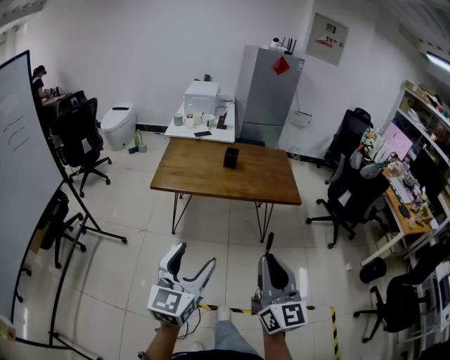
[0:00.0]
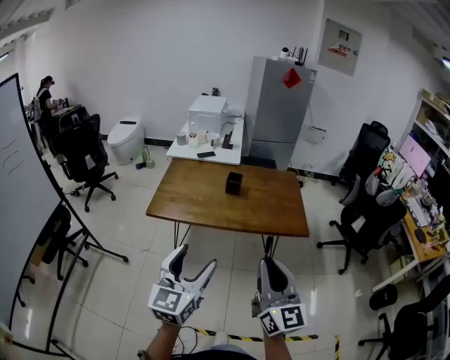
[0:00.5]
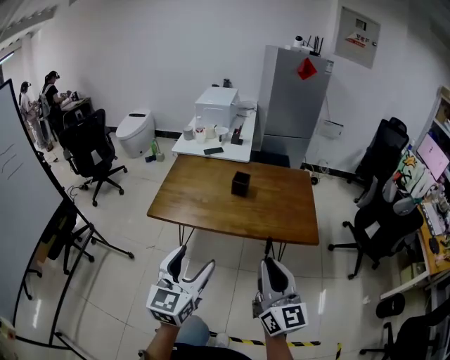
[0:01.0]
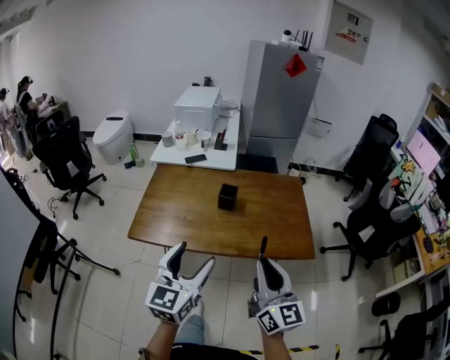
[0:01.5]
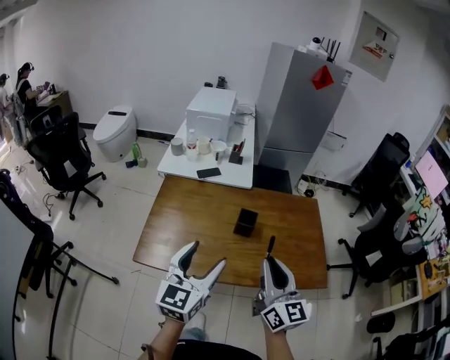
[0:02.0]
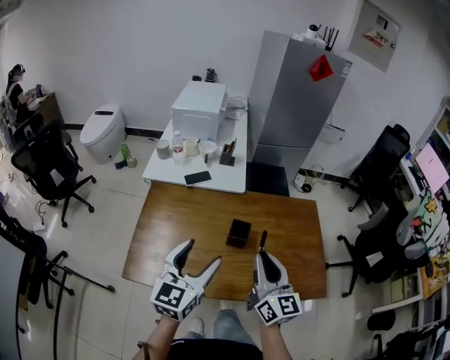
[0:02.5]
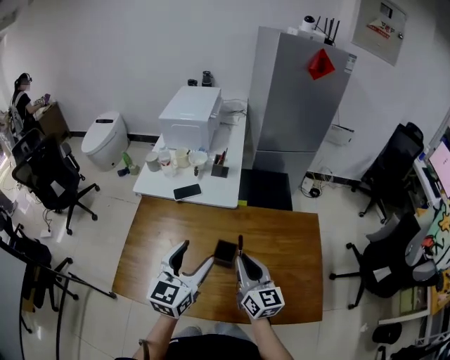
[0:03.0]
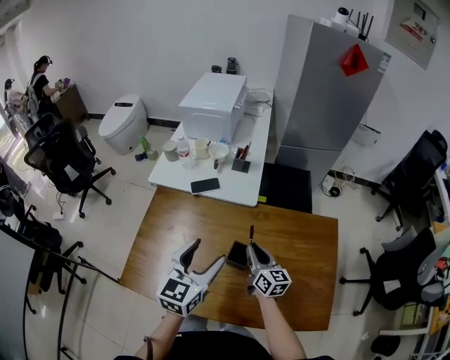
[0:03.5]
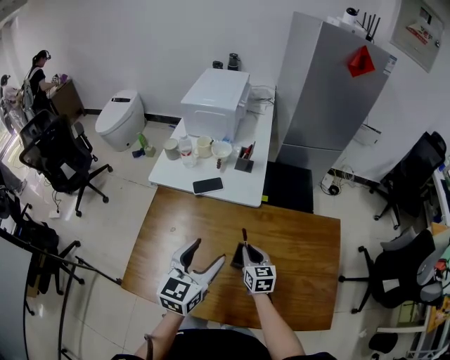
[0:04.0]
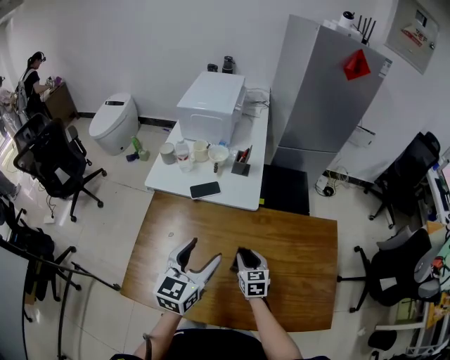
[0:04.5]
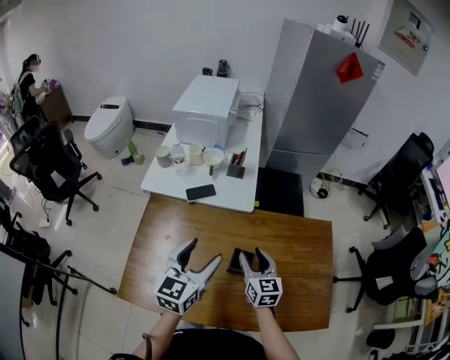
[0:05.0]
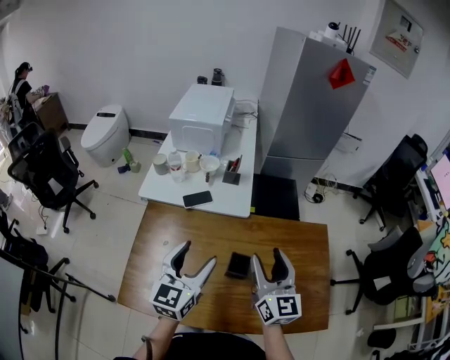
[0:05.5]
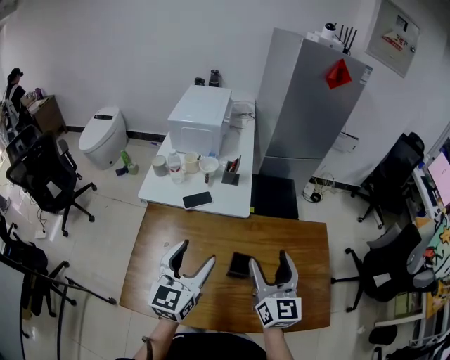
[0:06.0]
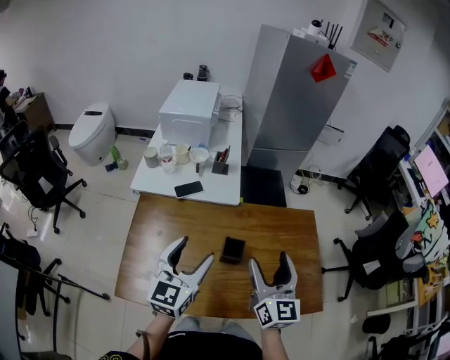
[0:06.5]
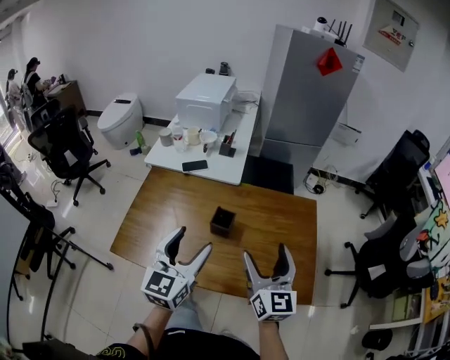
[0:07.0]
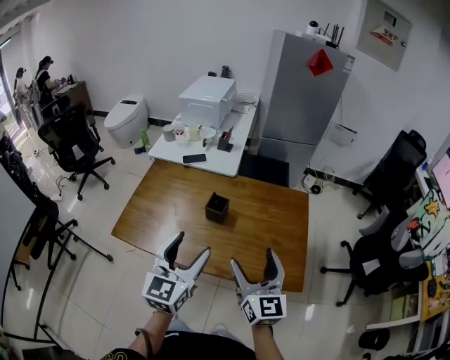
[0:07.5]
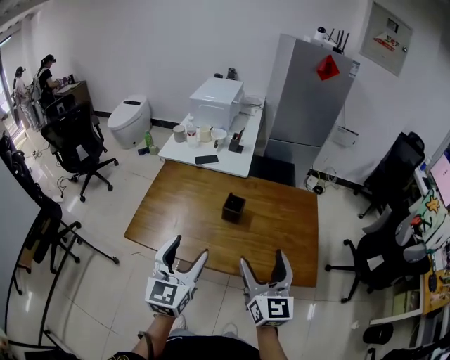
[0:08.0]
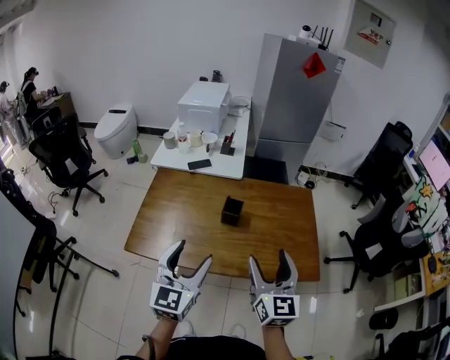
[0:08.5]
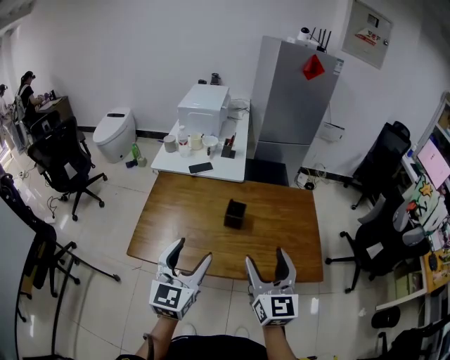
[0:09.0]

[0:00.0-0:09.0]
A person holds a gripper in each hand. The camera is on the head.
0:00.0 to 0:02.0: Both grippers are carried forward, roughly 60 cm.
0:02.0 to 0:04.5: The left gripper is displaced forward by roughly 30 cm. Meanwhile the right gripper travels forward and downward by some 50 cm, and tips its fingers downward by about 40 degrees.
0:04.5 to 0:07.0: The right gripper moves upward, backward and to the right, some 35 cm, tilts its fingers some 40 degrees upward, and opens up; the left gripper travels backward and to the right by about 20 cm.
0:07.0 to 0:09.0: The grippers both shift backward and to the left by approximately 15 cm.

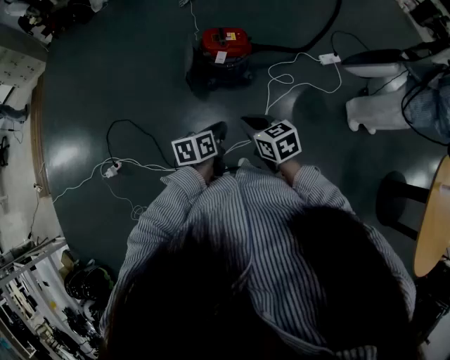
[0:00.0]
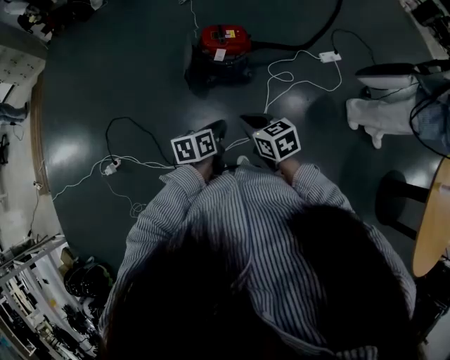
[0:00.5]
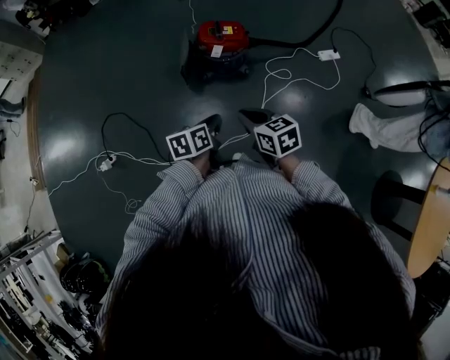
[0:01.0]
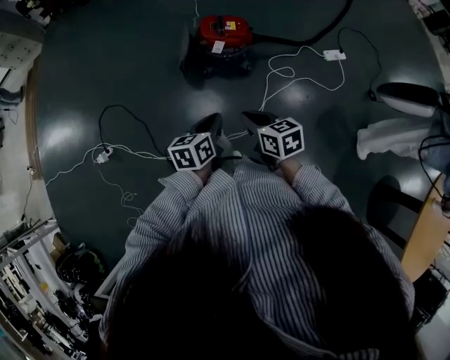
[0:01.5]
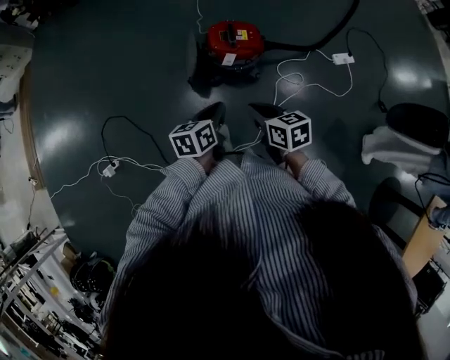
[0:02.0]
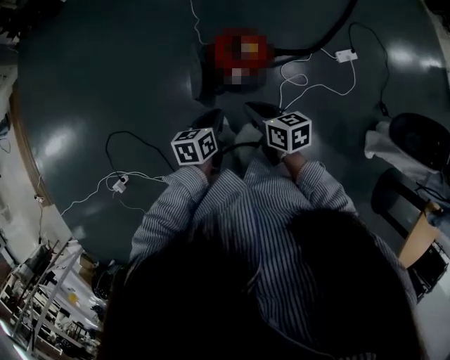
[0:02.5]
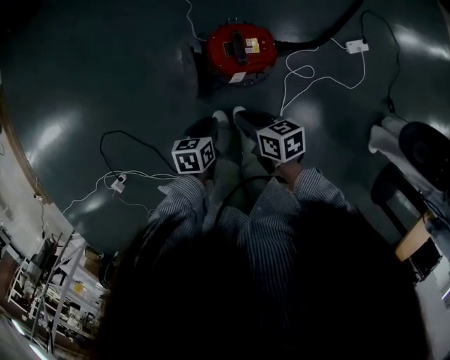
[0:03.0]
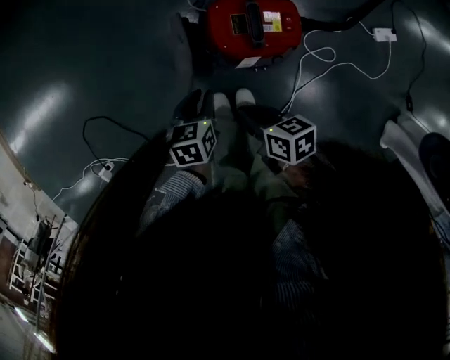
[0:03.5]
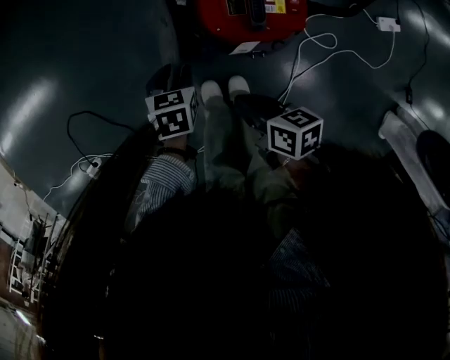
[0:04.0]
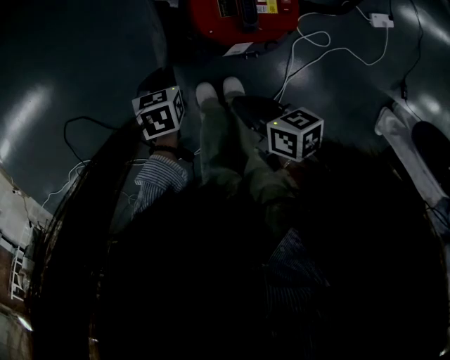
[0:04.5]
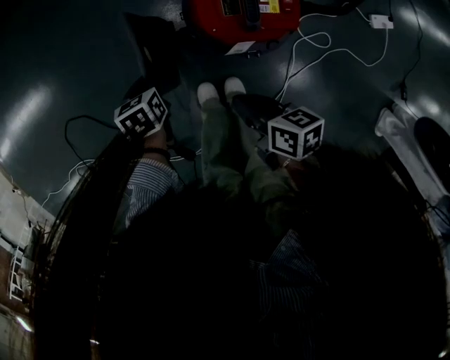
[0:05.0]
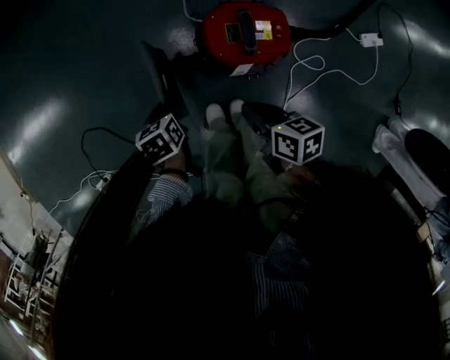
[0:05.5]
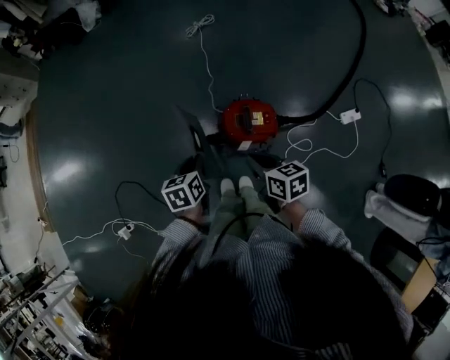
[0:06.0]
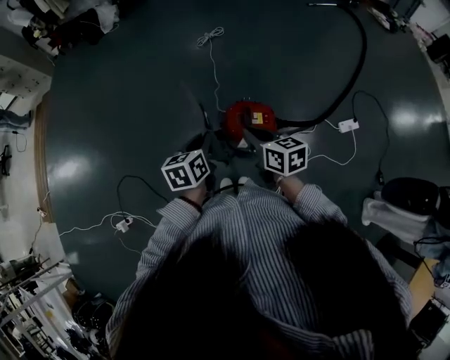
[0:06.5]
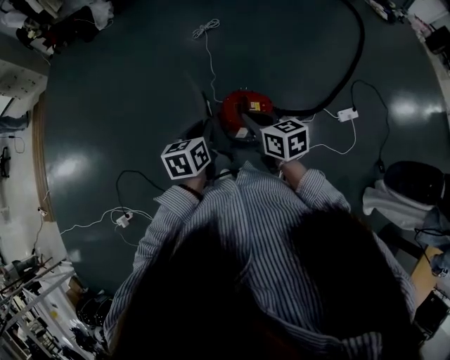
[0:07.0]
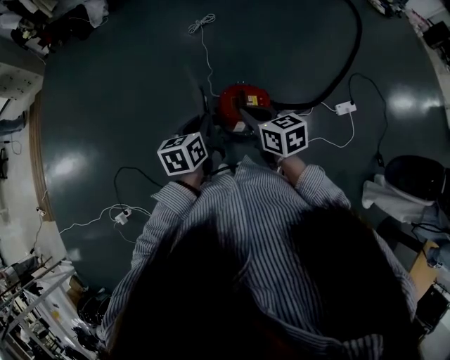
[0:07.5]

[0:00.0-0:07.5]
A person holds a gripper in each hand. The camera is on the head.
0:00.0 to 0:02.0: Both grippers move forward, approximately 20 cm.
0:02.0 to 0:04.0: Both grippers travel together downward and forward, about 40 cm. The right gripper changes its angle by approximately 30 degrees. Meanwhile the left gripper angles its fingers downward, by approximately 30 degrees, and opens its fingers.
0:04.0 to 0:05.5: The right gripper travels upward by roughly 10 cm. The left gripper travels upward and to the left by about 10 cm, rotates approximately 20 degrees, and closes.
0:05.5 to 0:07.5: Both grippers travel together upward, approximately 35 cm. The right gripper turns by approximately 30 degrees, while the left gripper points its fingers approximately 30 degrees further upward.

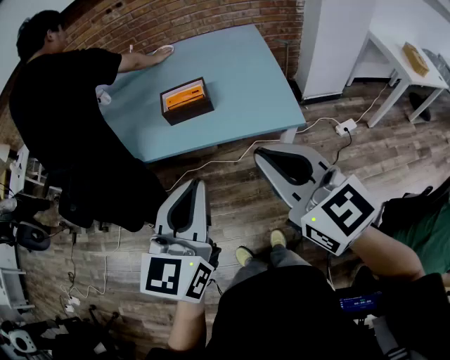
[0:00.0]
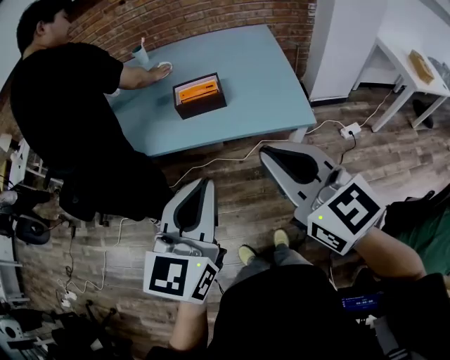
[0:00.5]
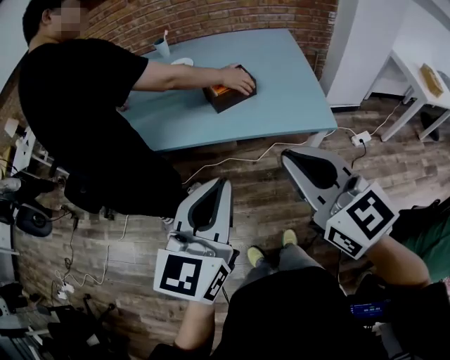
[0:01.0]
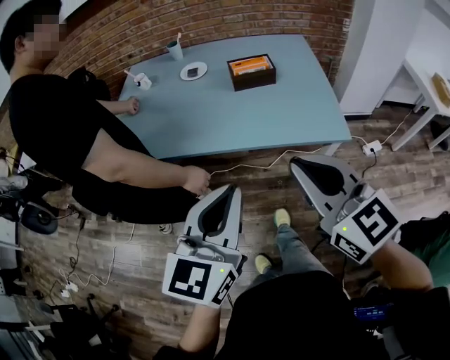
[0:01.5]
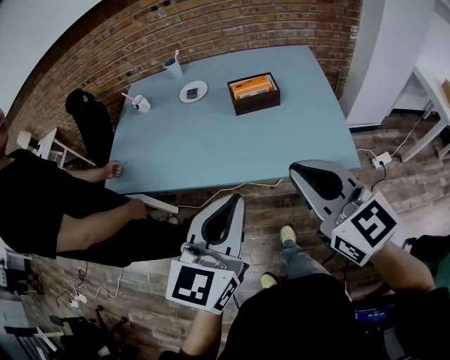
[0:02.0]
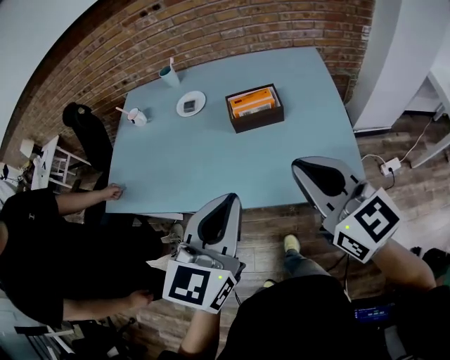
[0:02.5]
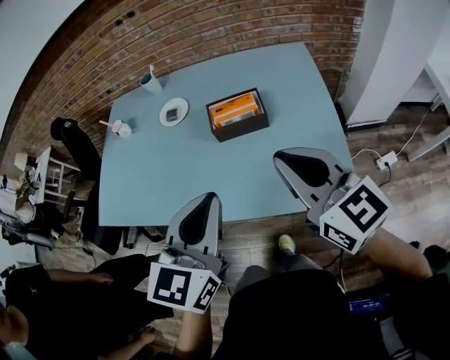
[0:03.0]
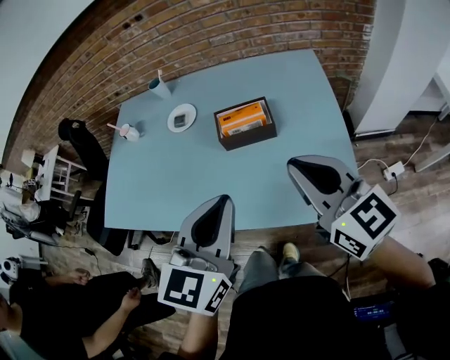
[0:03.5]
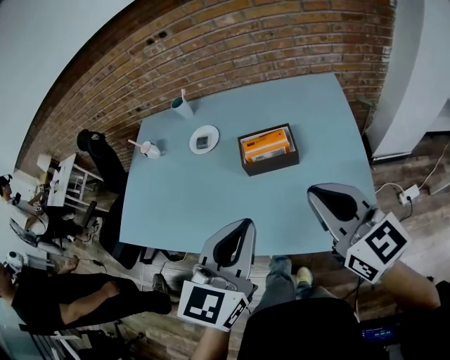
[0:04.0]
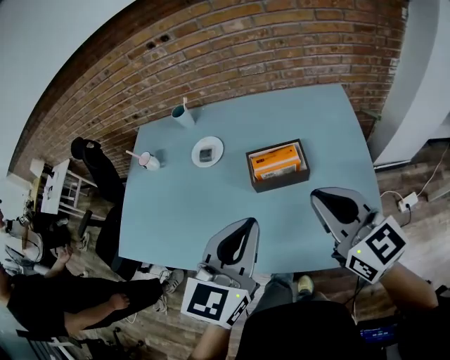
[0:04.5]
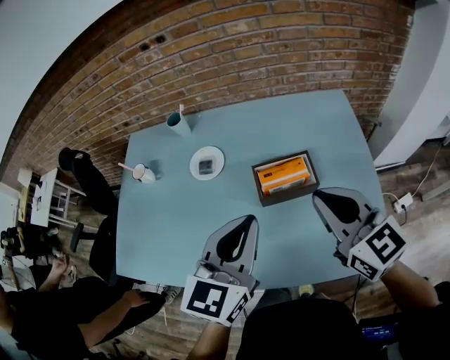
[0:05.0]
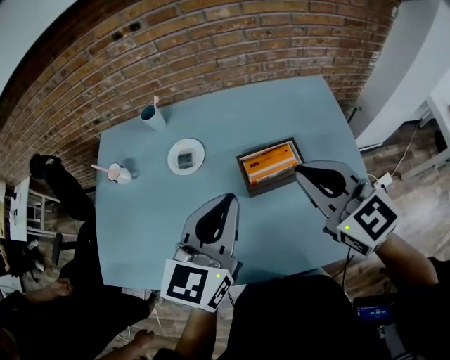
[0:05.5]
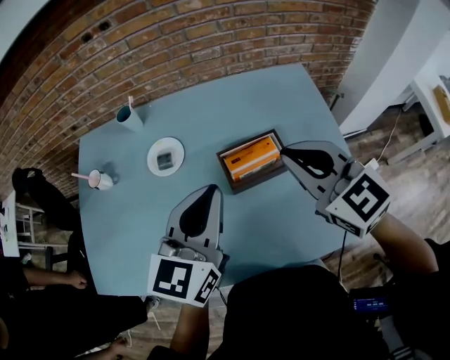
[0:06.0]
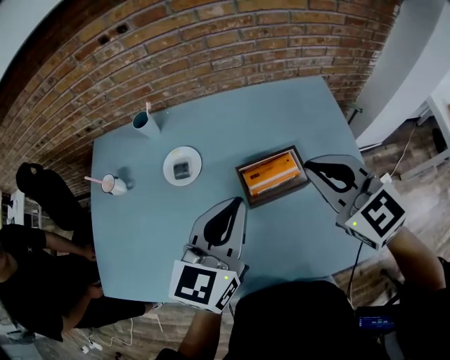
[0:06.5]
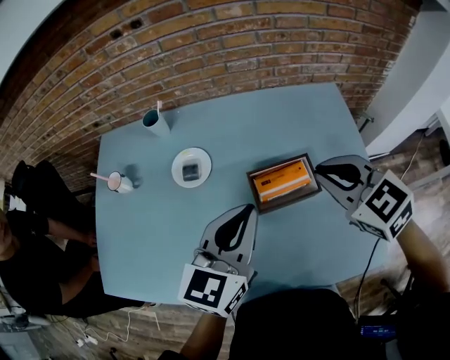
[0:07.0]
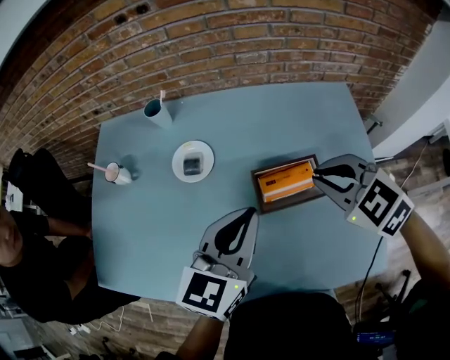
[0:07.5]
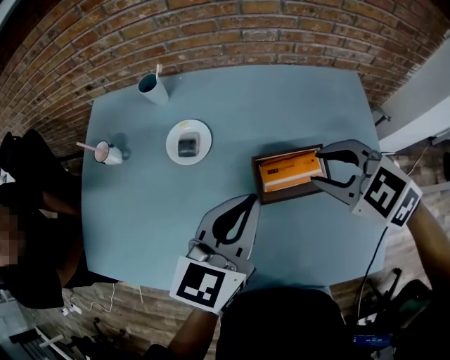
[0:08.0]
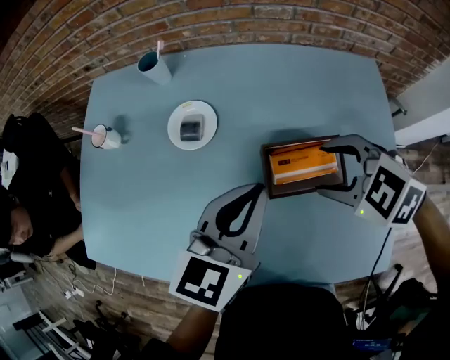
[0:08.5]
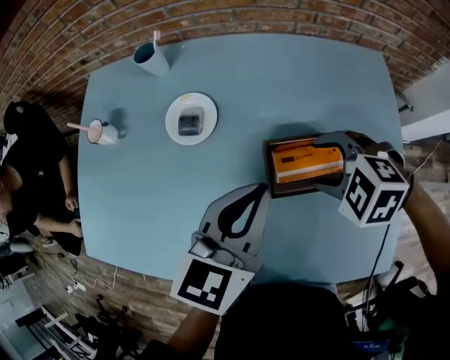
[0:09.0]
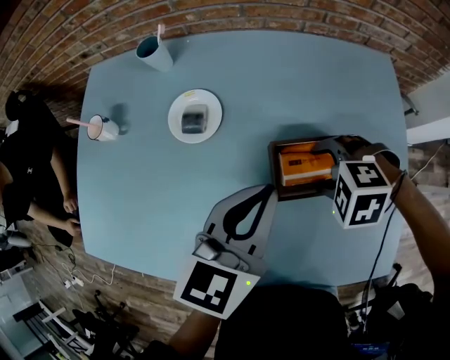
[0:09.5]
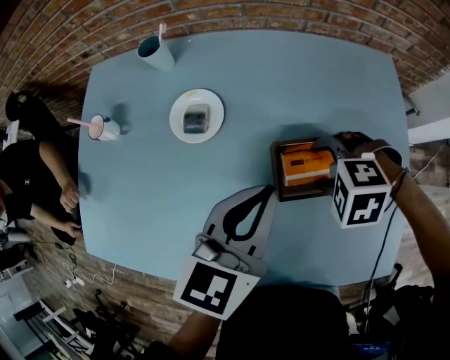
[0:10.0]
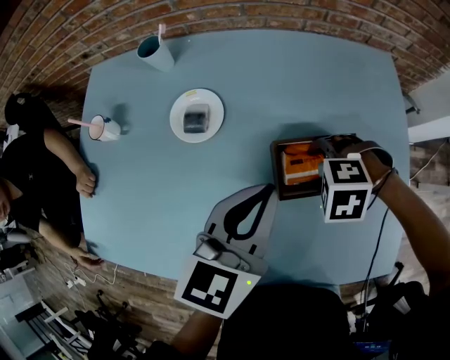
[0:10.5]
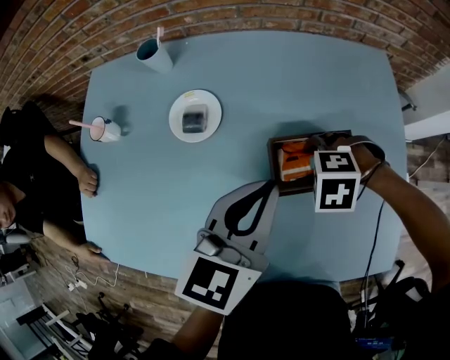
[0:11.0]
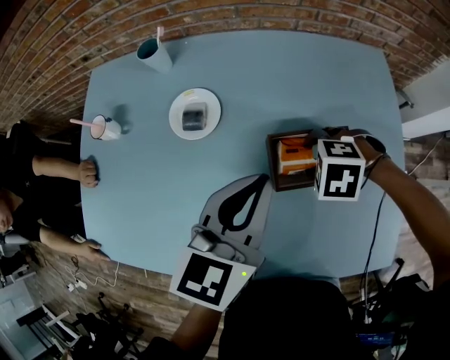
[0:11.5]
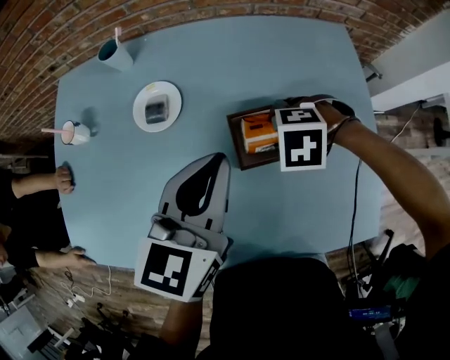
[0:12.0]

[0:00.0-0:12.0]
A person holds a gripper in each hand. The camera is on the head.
0:00.0 to 0:02.0: Both grippers move forward and to the left, roughly 15 cm.
0:02.0 to 0:04.0: The two grippers go some 25 cm forward and to the right.
0:04.0 to 0:06.0: The grippers both shift forward and to the left by about 20 cm. The right gripper rotates approximately 20 degrees.
0:06.0 to 0:08.0: The left gripper is displaced downward by roughly 5 cm. The right gripper is displaced downward and forward by roughly 10 cm, points its fingers approximately 30 degrees further downward, and opens up.
0:08.0 to 0:10.0: The left gripper ends up approximately 5 cm from where it was. Meanwhile the right gripper shifts some 15 cm downward, changes its angle by some 40 degrees, and opens.
0:10.0 to 0:12.0: The grippers make only small movements.
